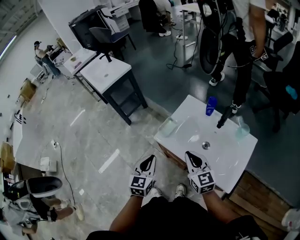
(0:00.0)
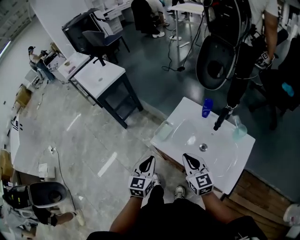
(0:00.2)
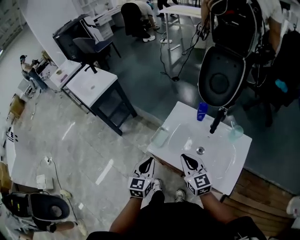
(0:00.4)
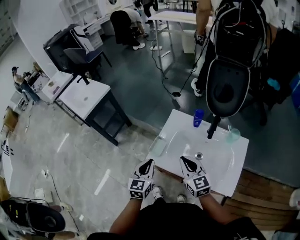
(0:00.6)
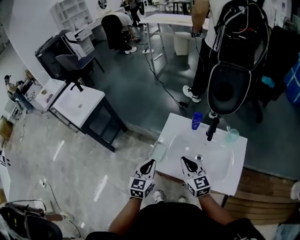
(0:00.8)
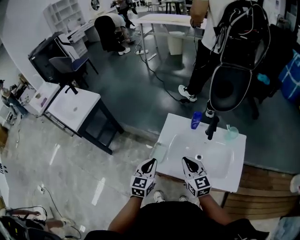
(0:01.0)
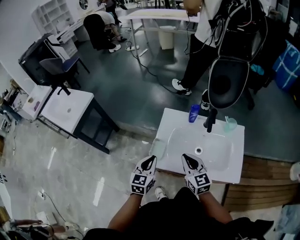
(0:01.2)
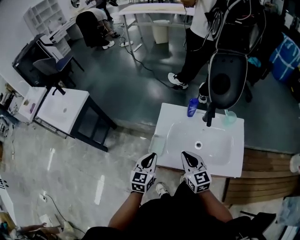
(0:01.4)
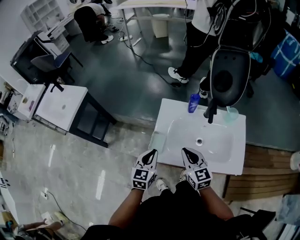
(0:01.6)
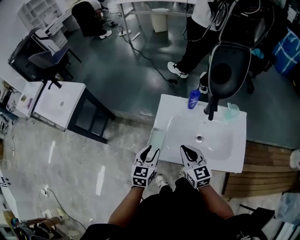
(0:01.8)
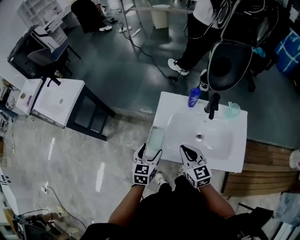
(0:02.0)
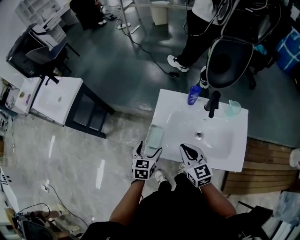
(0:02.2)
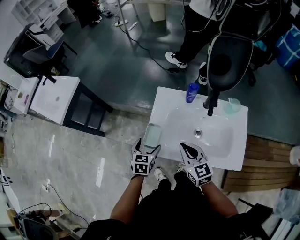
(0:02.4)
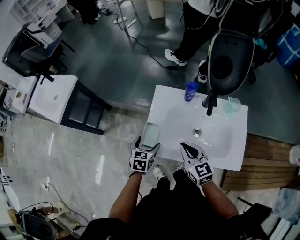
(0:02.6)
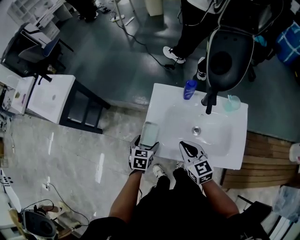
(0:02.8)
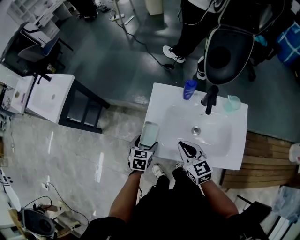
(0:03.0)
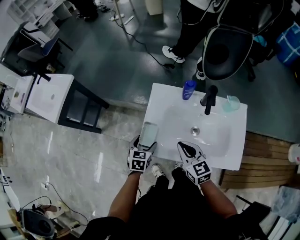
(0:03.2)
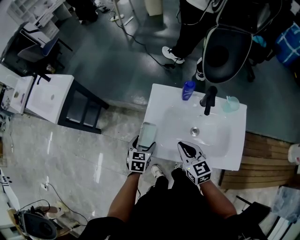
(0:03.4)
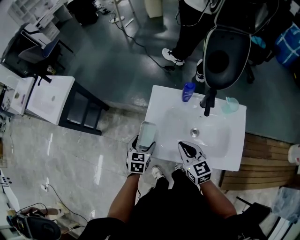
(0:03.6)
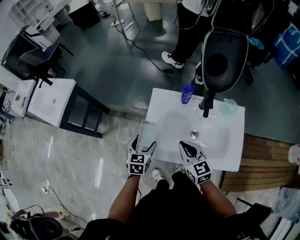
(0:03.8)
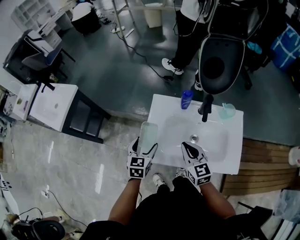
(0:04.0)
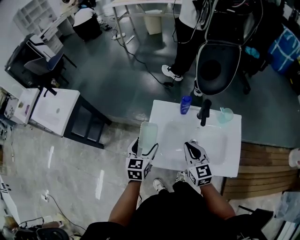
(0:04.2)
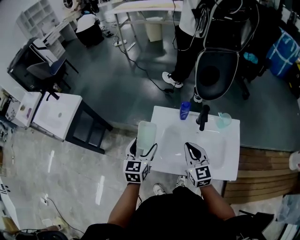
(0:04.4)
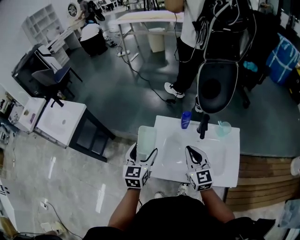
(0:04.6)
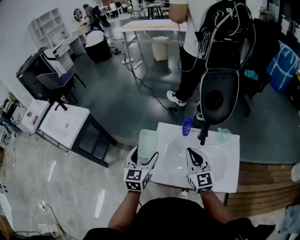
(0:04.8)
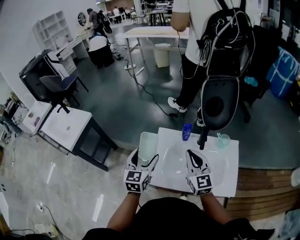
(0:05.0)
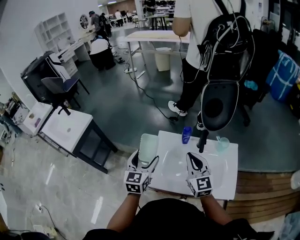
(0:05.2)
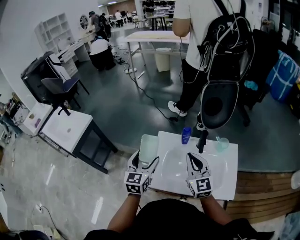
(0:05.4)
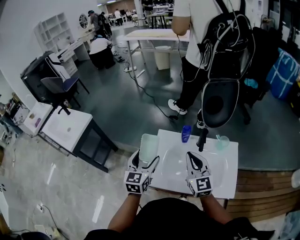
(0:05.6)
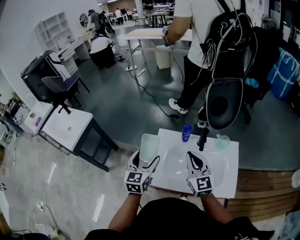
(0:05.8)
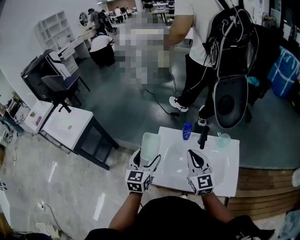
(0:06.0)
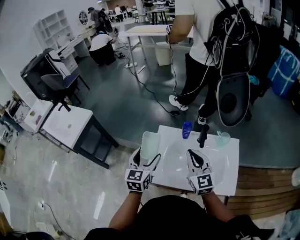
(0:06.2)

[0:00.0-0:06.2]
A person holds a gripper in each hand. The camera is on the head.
0:00.0 to 0:01.6: The left gripper moves approximately 15 cm, and turns by about 30 degrees; the right gripper shifts by some 10 cm, and swivels some 30 degrees.
0:01.6 to 0:03.2: The left gripper heads downward, covering roughly 10 cm, rotates approximately 20 degrees, and opens up.
0:03.2 to 0:04.6: The right gripper shifts some 15 cm upward, forward and to the right, and rotates about 20 degrees; the left gripper heads upward, covering some 20 cm, and rotates some 30 degrees.
0:04.6 to 0:06.2: The grippers move only a little.

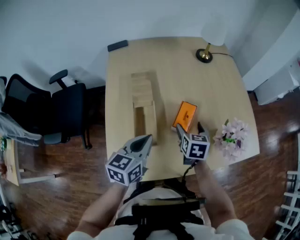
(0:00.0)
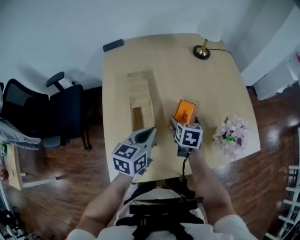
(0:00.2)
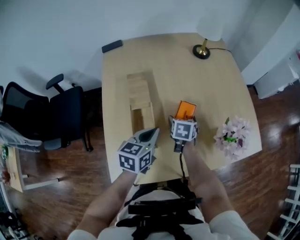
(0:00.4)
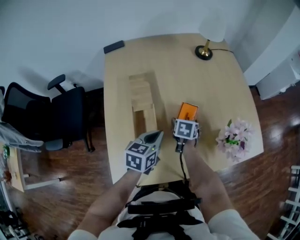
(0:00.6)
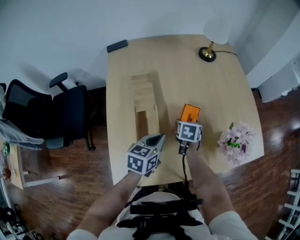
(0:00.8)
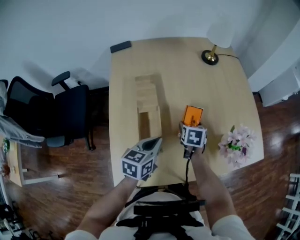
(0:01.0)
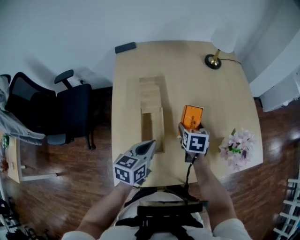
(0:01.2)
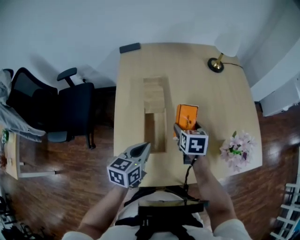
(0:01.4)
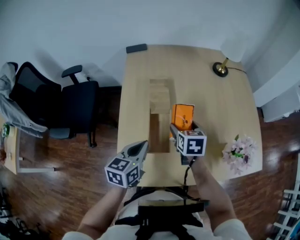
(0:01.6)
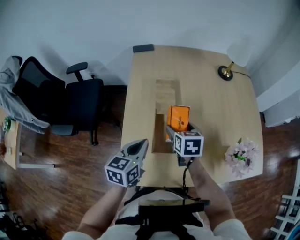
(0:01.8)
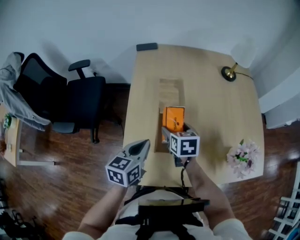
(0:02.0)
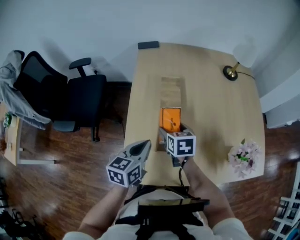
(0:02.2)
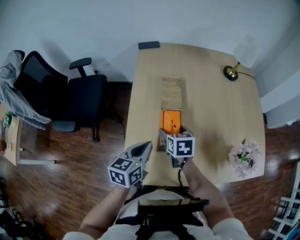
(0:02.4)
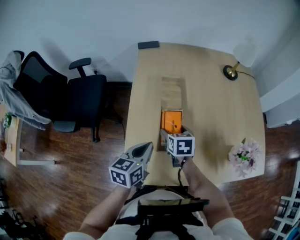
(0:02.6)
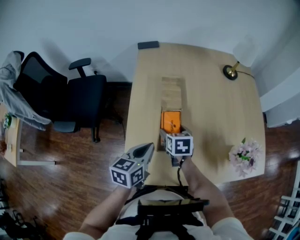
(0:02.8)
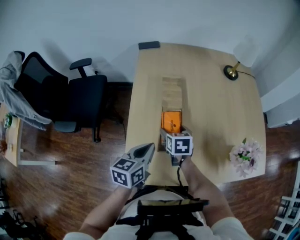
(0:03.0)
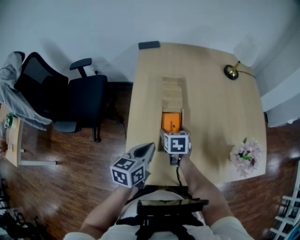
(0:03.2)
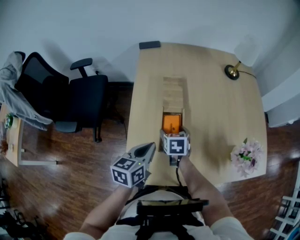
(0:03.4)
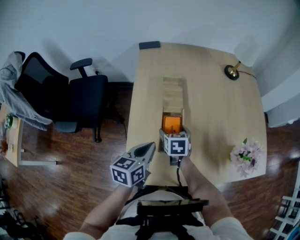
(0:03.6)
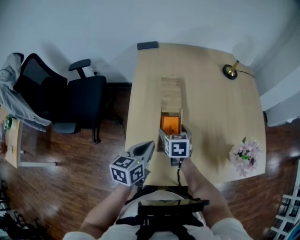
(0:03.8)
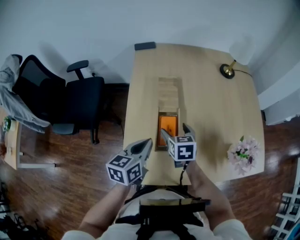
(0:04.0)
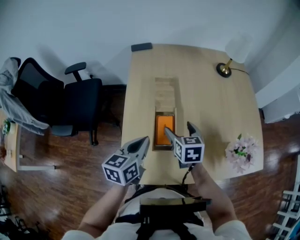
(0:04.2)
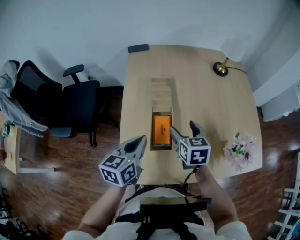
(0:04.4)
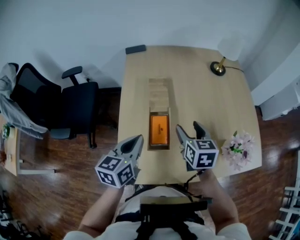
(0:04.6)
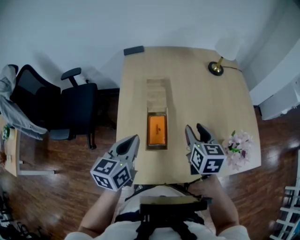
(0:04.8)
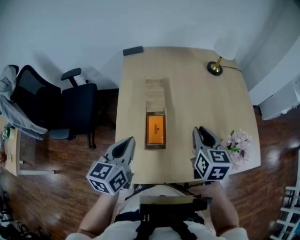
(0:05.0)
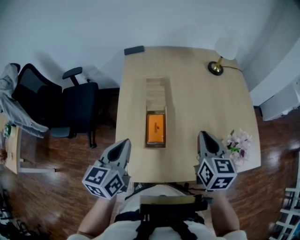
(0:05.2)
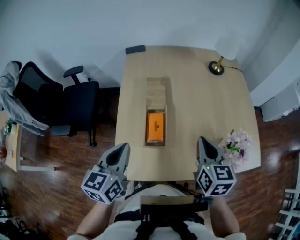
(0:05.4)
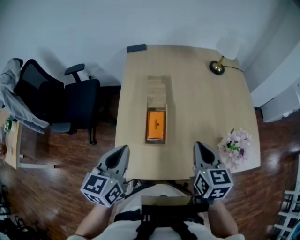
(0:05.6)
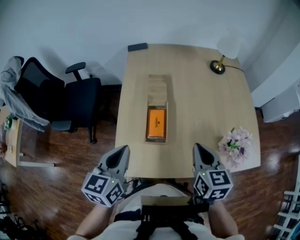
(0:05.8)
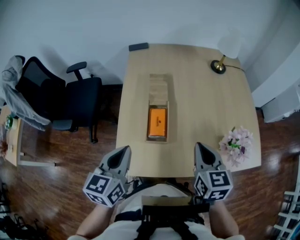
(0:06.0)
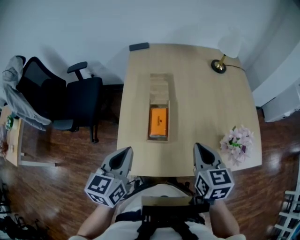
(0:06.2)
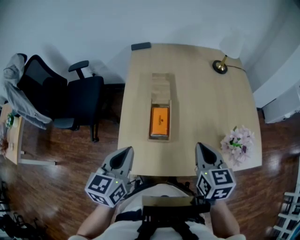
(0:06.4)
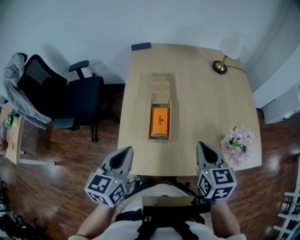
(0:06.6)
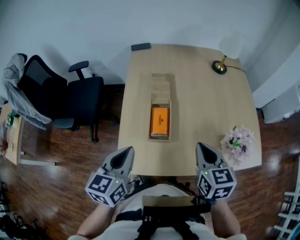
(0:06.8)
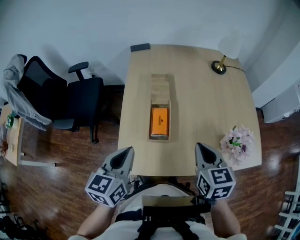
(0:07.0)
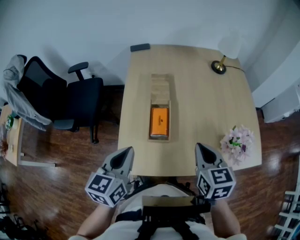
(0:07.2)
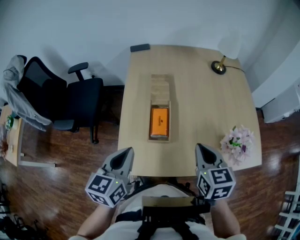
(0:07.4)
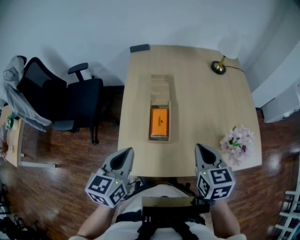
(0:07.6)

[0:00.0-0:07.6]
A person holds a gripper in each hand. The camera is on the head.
0:00.0 to 0:01.6: Both grippers move to the left, some 10 cm.
0:01.6 to 0:03.0: The right gripper goes some 10 cm to the left and downward.
0:03.0 to 0:04.6: The left gripper heads upward, covering some 5 cm, while the right gripper goes approximately 15 cm upward and to the right.
0:04.6 to 0:06.0: The left gripper travels backward by approximately 10 cm, while the right gripper travels backward, upward and to the right by approximately 15 cm, and closes.
0:06.0 to 0:07.6: Neither gripper changes place.

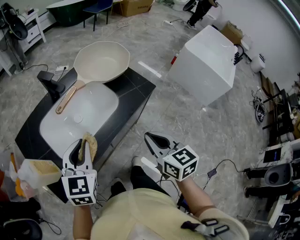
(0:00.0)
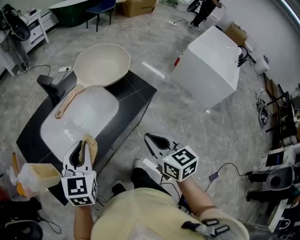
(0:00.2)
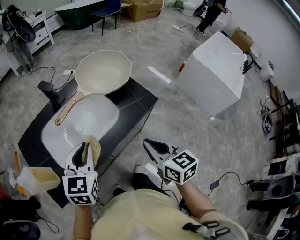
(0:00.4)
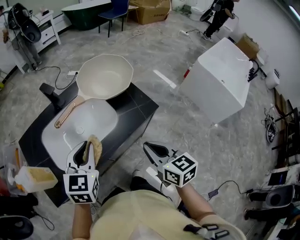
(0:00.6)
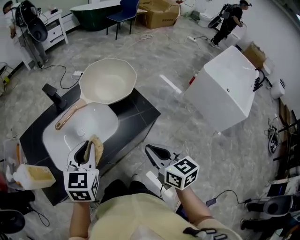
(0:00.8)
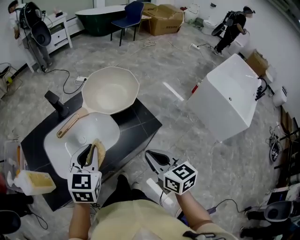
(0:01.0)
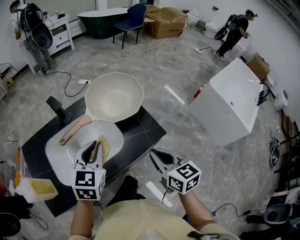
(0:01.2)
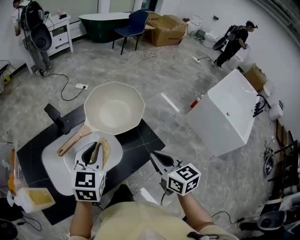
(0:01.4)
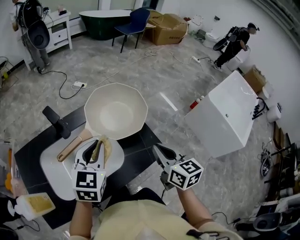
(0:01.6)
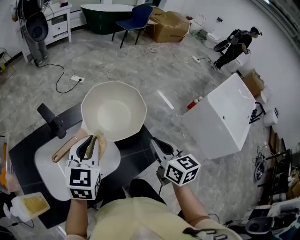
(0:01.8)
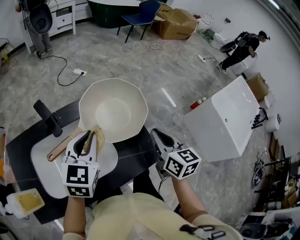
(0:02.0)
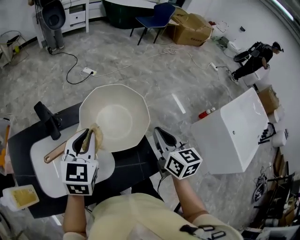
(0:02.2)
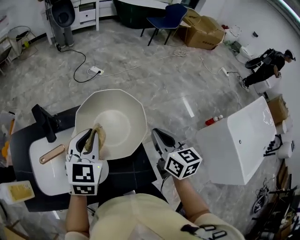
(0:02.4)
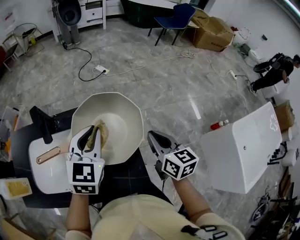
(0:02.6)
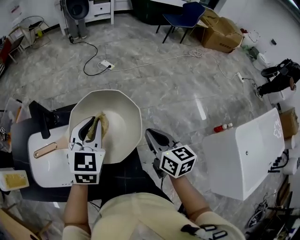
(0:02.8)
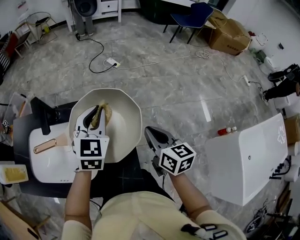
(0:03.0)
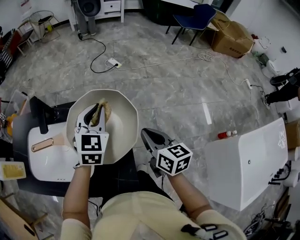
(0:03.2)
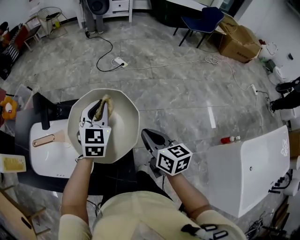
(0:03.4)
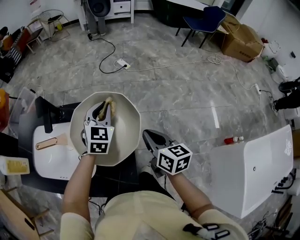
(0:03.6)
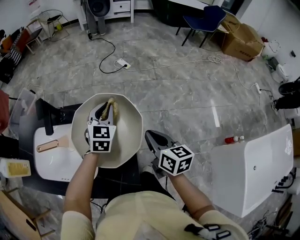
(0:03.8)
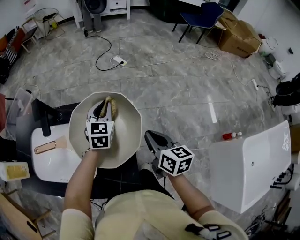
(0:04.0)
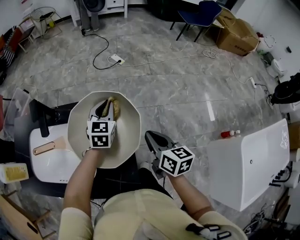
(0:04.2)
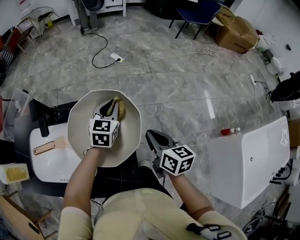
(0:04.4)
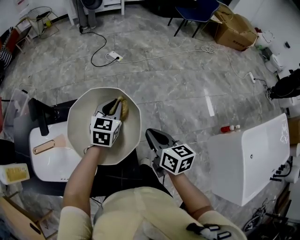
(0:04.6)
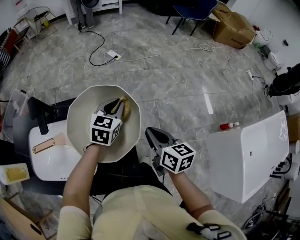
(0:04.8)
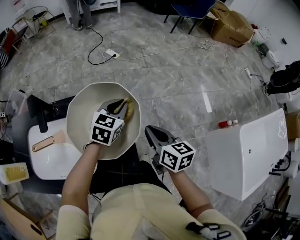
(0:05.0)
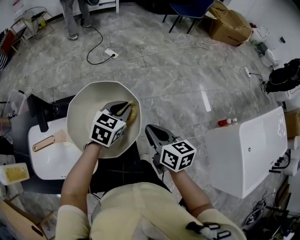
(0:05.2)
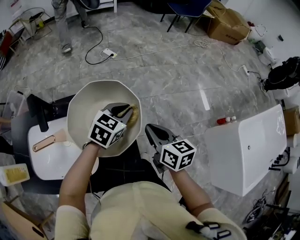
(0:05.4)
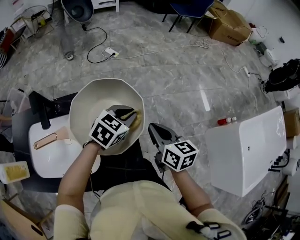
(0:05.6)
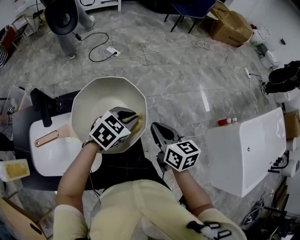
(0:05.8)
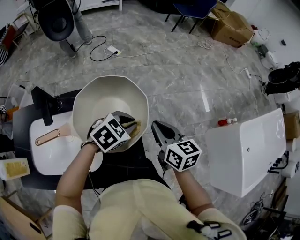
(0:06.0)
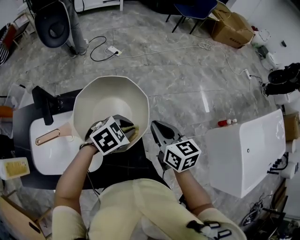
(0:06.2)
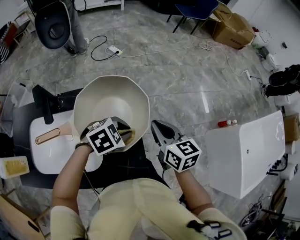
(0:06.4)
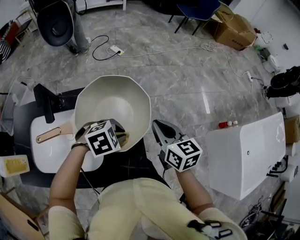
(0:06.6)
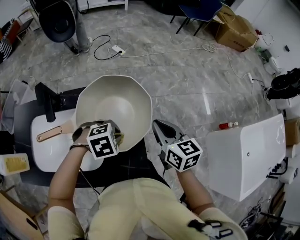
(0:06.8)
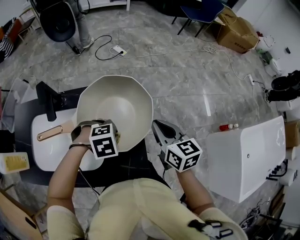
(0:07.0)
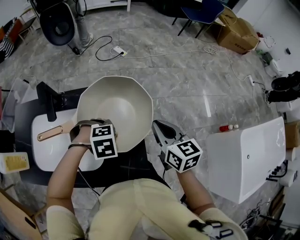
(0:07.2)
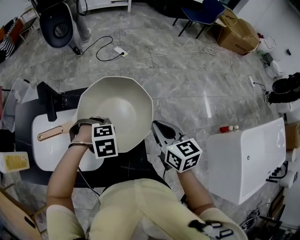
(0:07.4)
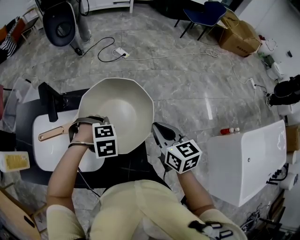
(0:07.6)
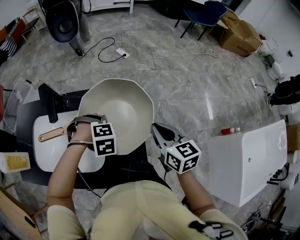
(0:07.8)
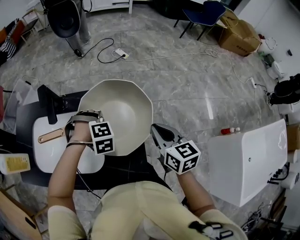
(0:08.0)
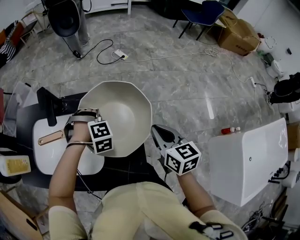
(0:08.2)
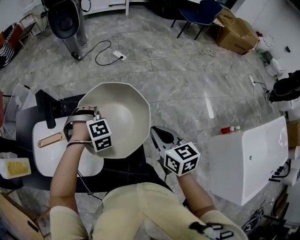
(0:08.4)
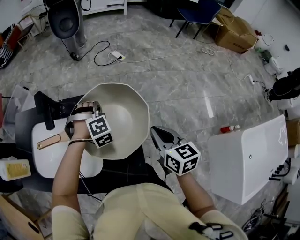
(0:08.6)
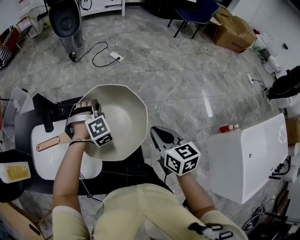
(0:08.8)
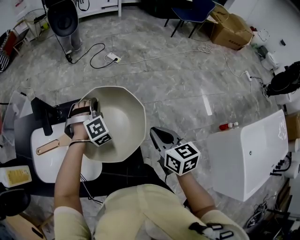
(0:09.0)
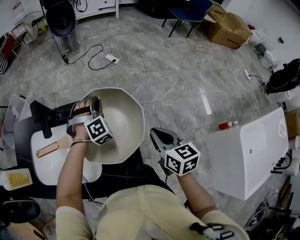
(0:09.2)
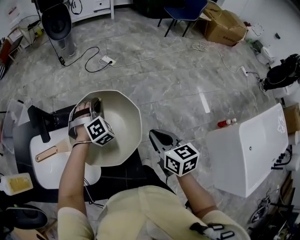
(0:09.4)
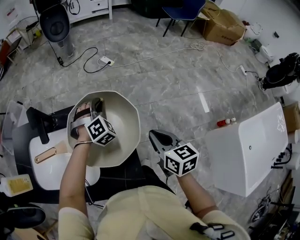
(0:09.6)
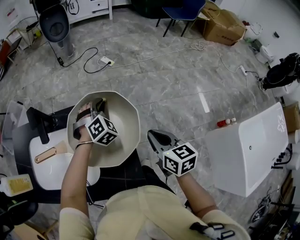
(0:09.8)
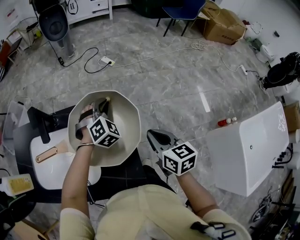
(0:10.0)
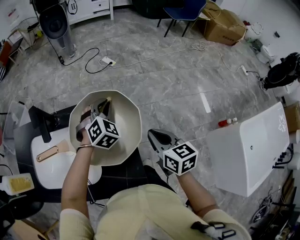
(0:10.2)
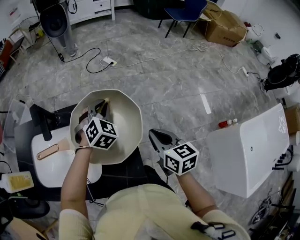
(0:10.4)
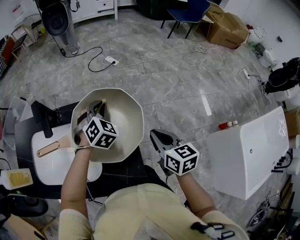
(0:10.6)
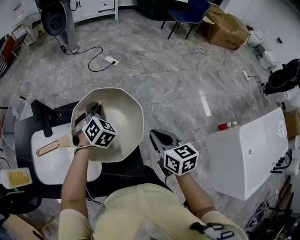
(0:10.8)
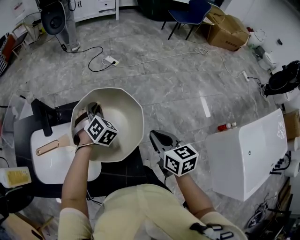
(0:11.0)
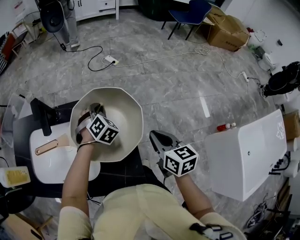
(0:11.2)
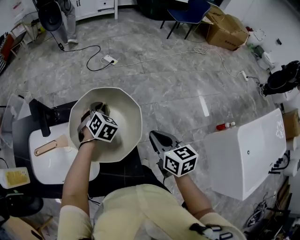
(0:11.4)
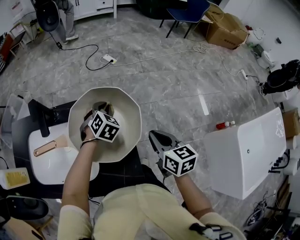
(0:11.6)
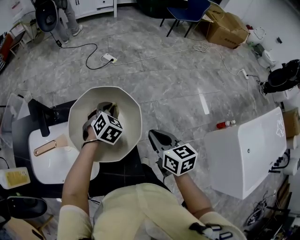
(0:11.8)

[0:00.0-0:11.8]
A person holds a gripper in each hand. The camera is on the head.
0:00.0 to 0:01.4: Both grippers travel together forward and to the right, approximately 20 cm.
0:01.4 to 0:03.0: The right gripper shifts by about 30 cm, and changes its angle by about 20 degrees; the left gripper changes place by roughly 30 cm, and changes its angle by roughly 30 degrees.
0:03.0 to 0:04.4: The left gripper is displaced downward, forward and to the right by roughly 15 cm.
0:04.4 to 0:06.0: The left gripper moves approximately 15 cm, and swivels roughly 50 degrees.
0:06.0 to 0:07.4: The left gripper ends up some 10 cm from where it was, and points its fingers roughly 30 degrees further downward.
0:07.4 to 0:08.8: The left gripper ends up some 15 cm from where it was, and tips its fingers upward by about 40 degrees.
0:08.8 to 0:10.4: The left gripper goes about 10 cm to the right and upward, and swivels roughly 40 degrees.
0:10.4 to 0:11.8: The left gripper goes about 5 cm downward.
